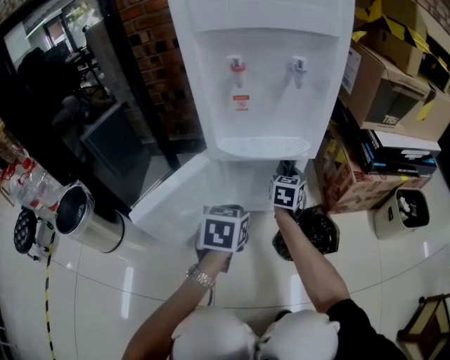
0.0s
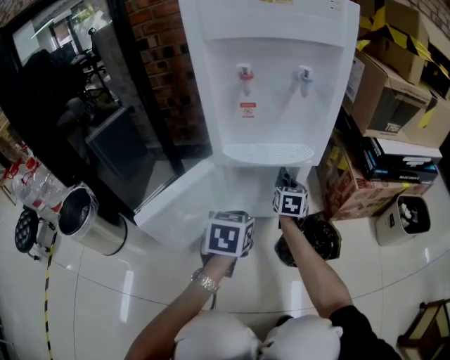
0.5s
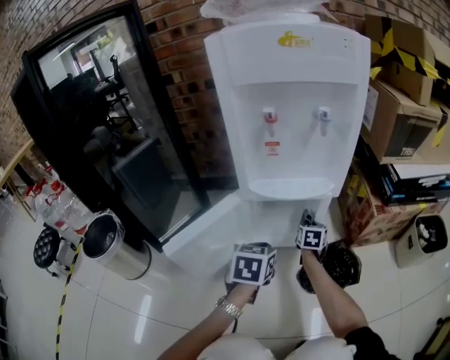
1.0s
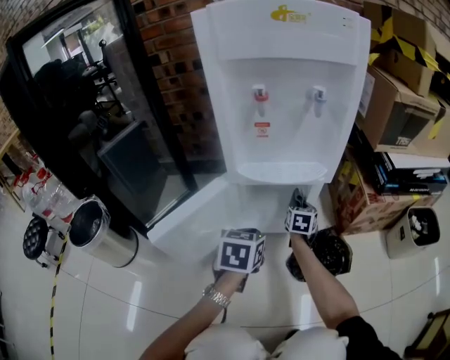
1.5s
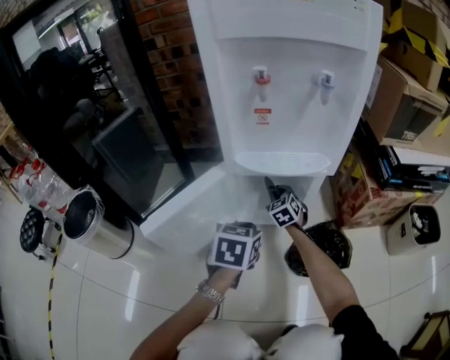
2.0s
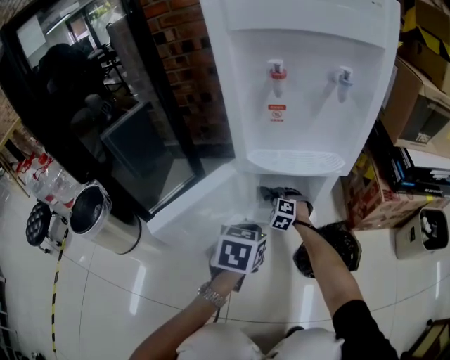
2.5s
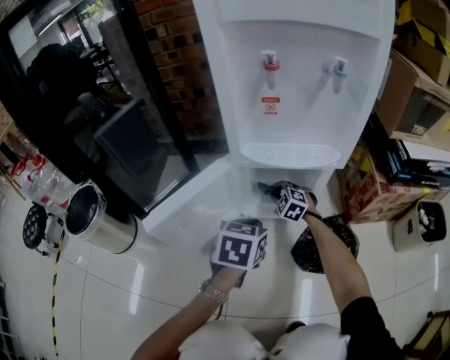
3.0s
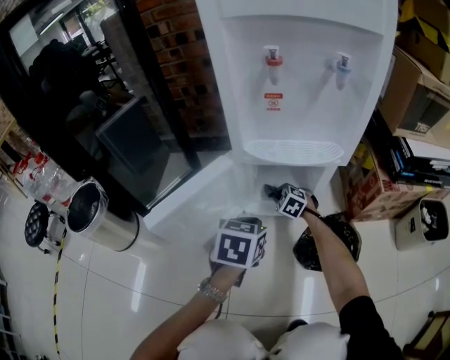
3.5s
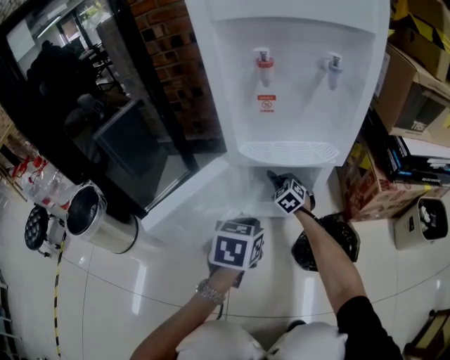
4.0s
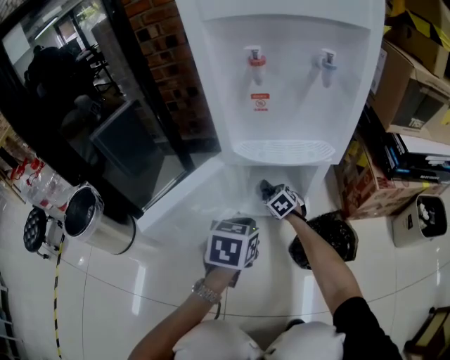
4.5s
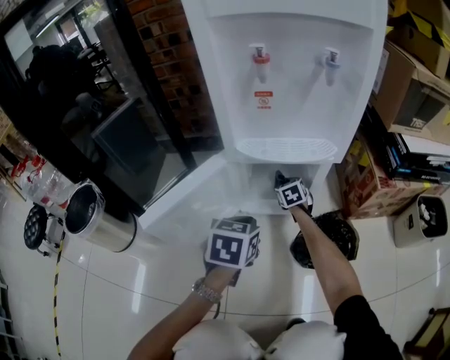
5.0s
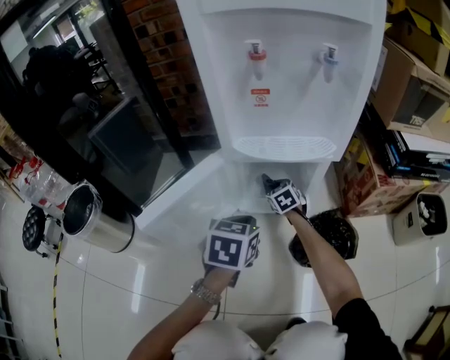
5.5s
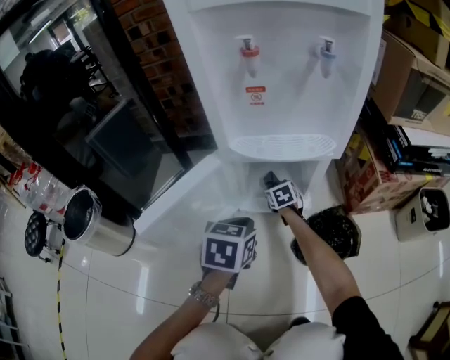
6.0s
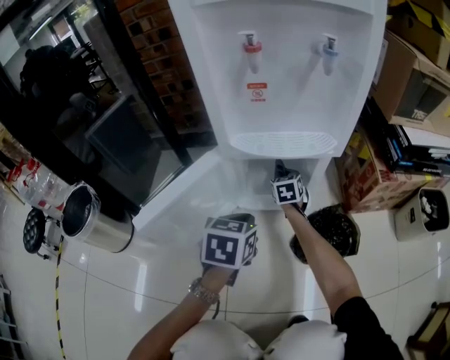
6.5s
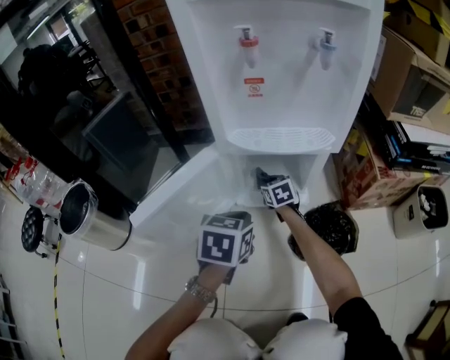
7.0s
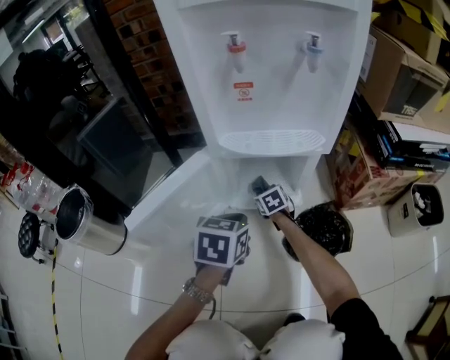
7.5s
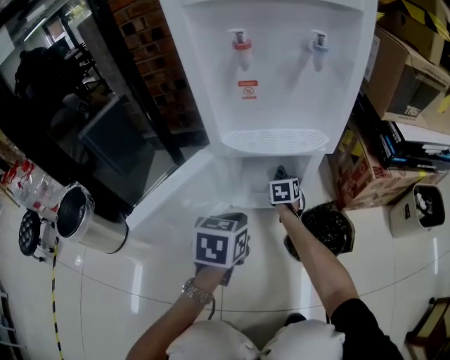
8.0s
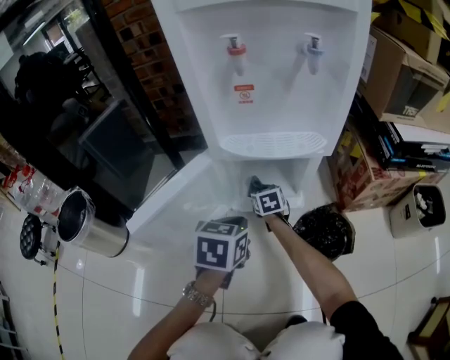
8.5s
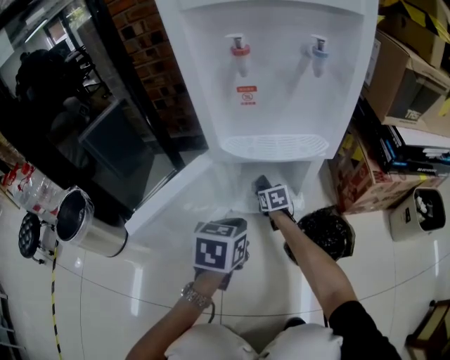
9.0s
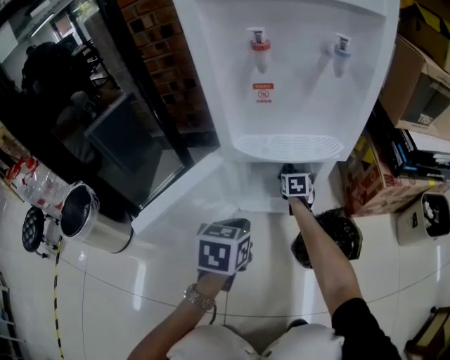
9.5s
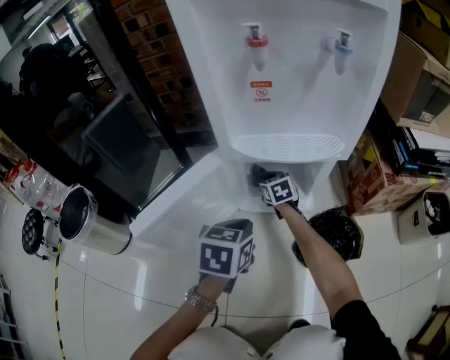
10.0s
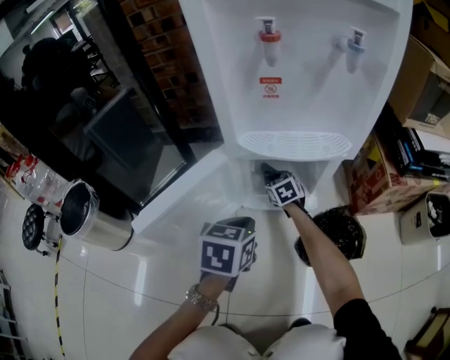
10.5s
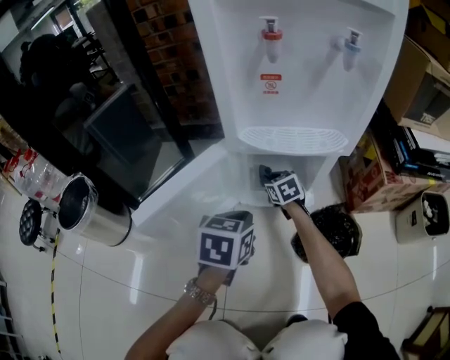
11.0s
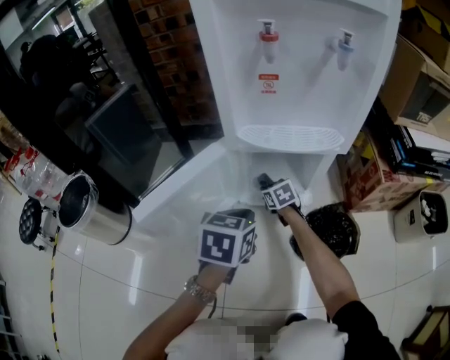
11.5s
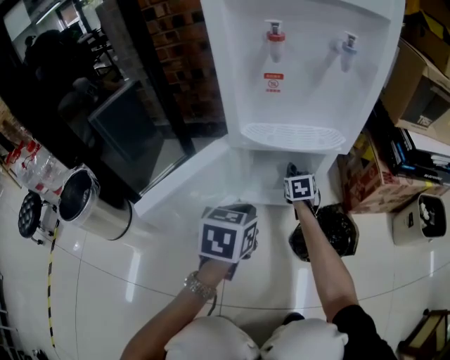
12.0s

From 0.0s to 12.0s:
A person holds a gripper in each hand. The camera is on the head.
From 0.0s to 2.0s: The right gripper travels downward and to the left by approximately 15 cm, and swivels roughly 40 degrees.
From 4.0s to 6.0s: The right gripper is displaced downward by about 5 cm, and changes its angle by some 30 degrees.
From 6.0s to 8.0s: The right gripper moves left and right over roughly 10 cm, changing direction 2 times, and swivels some 20 degrees.
From 8.0s to 10.0s: The right gripper goes left and right, some 10 cm each way, reversing 2 times, and rotates some 30 degrees.
From 10.0s to 12.0s: The right gripper moves to the right, some 10 cm.

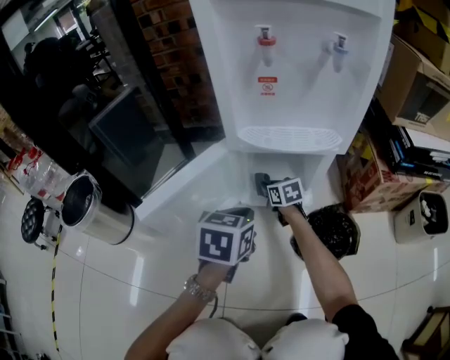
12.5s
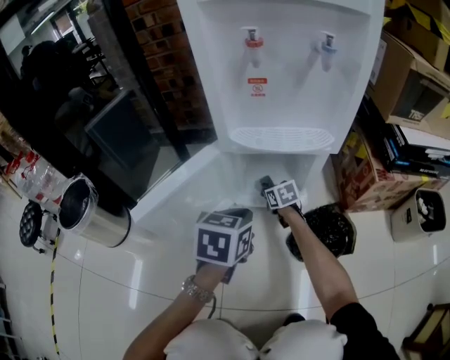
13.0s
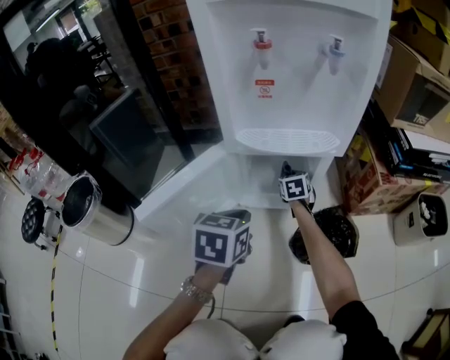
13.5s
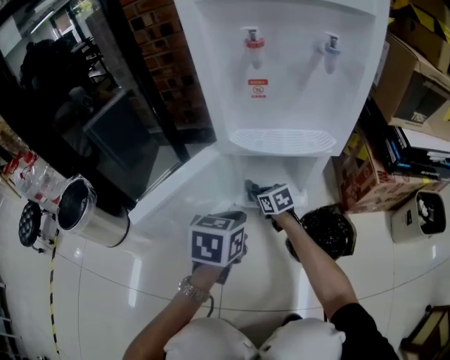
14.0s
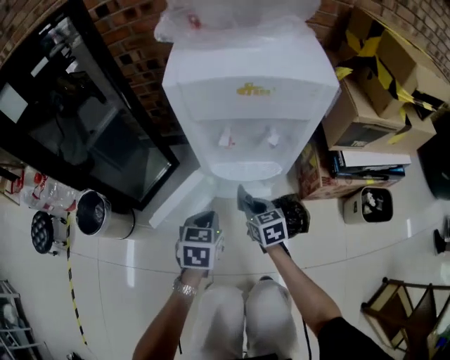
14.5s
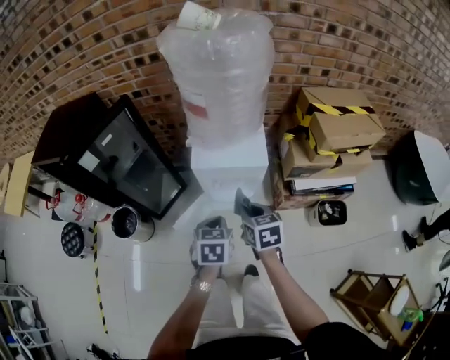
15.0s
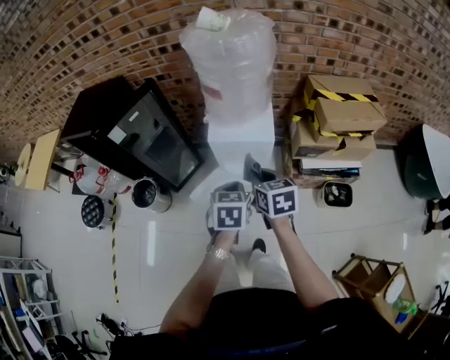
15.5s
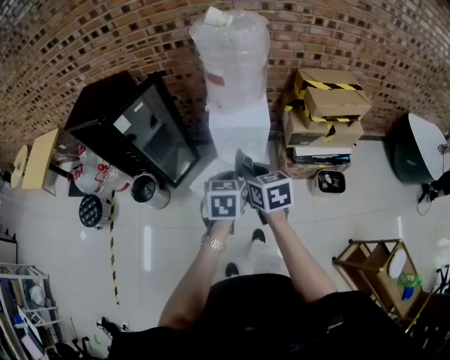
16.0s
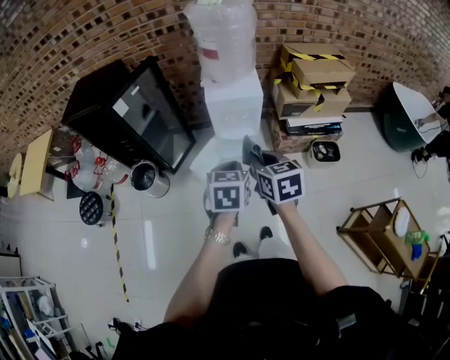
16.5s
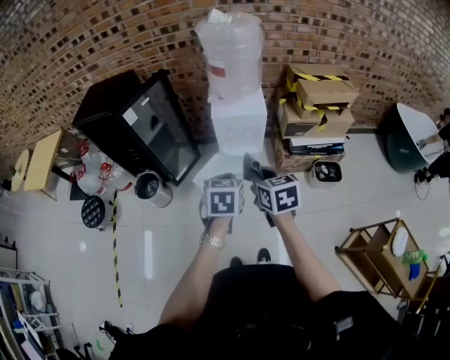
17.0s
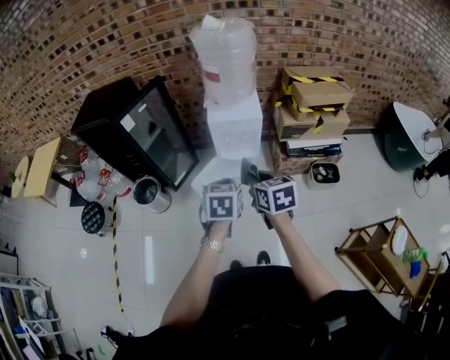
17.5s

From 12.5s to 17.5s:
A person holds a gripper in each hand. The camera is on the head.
From 12.5s to 15.0s: Both grippers travel together upward, roughly 70 cm.
From 15.0s to 17.5s: Both grippers move backward and upward, roughly 30 cm.

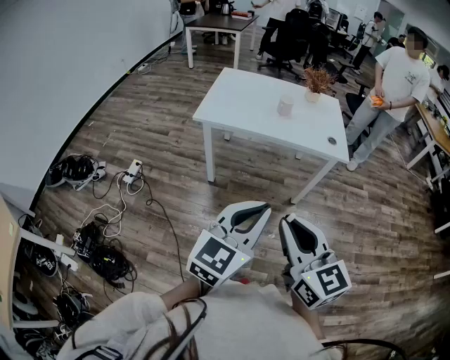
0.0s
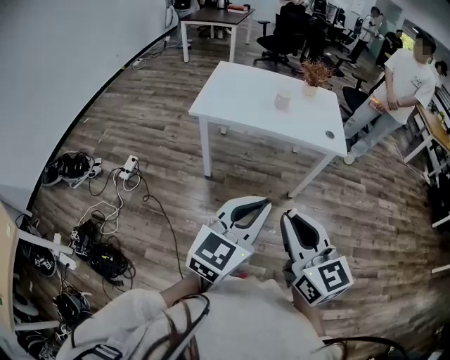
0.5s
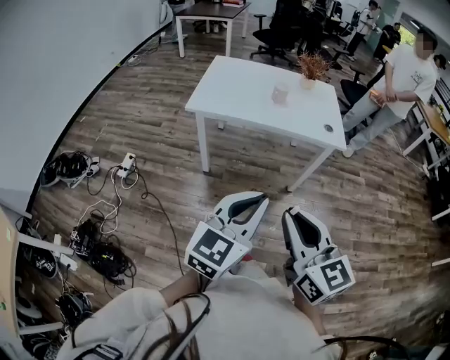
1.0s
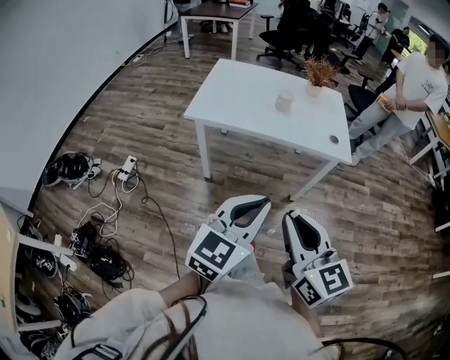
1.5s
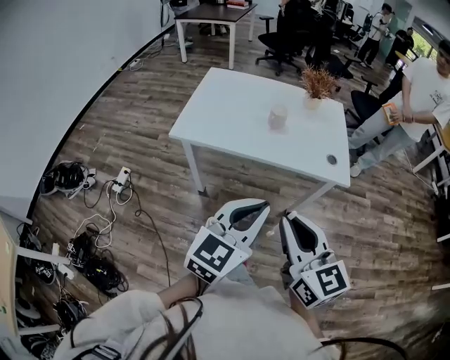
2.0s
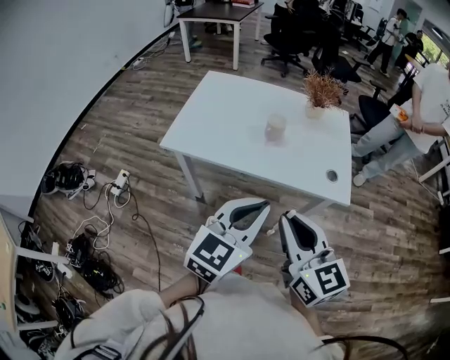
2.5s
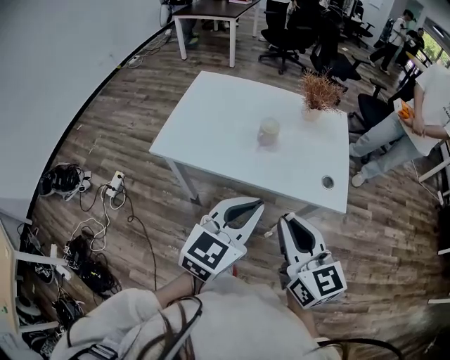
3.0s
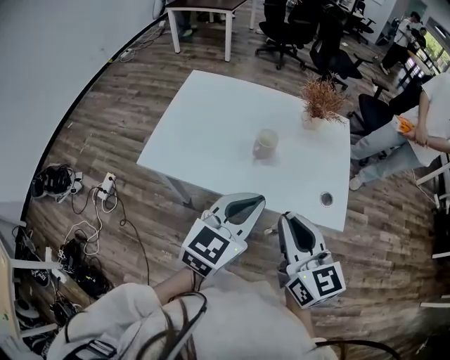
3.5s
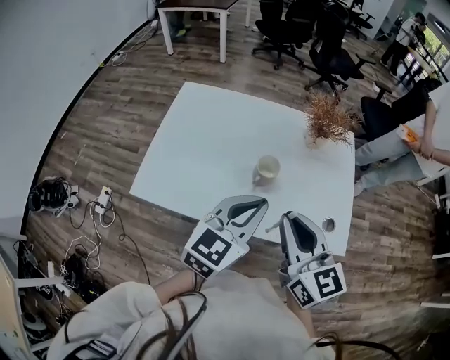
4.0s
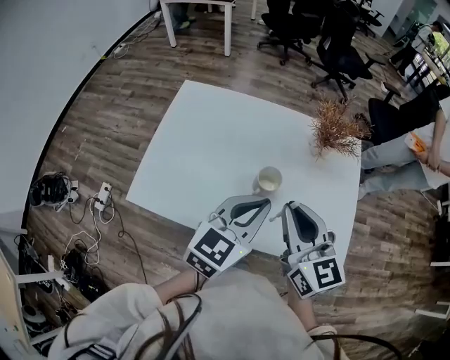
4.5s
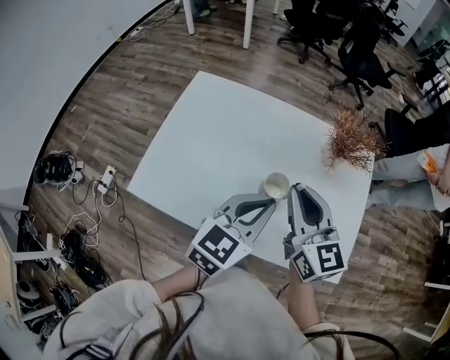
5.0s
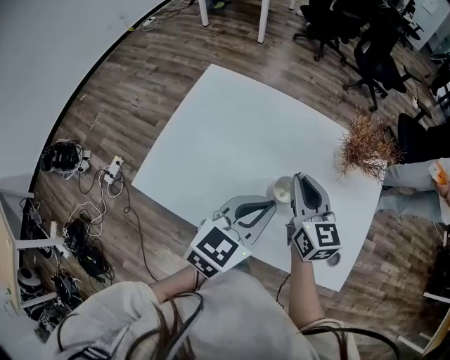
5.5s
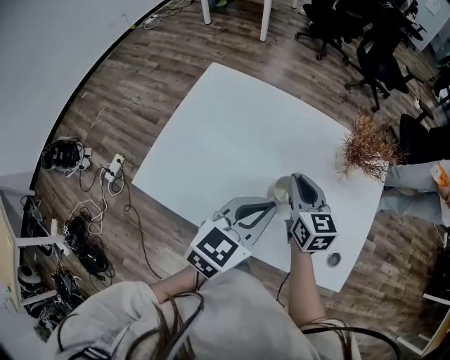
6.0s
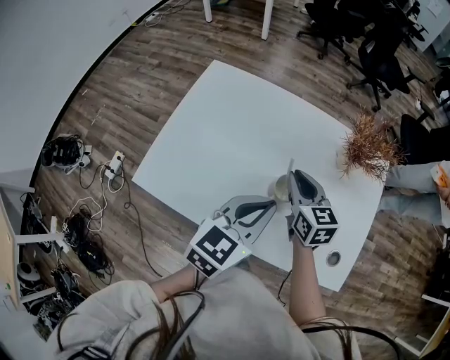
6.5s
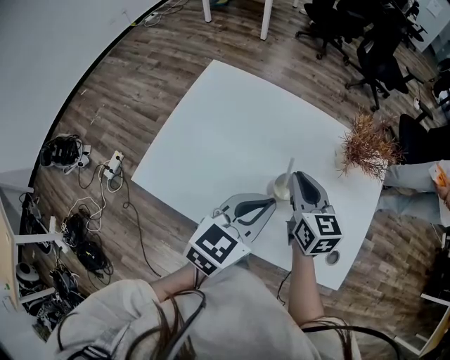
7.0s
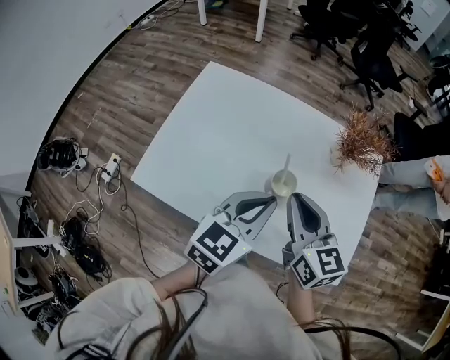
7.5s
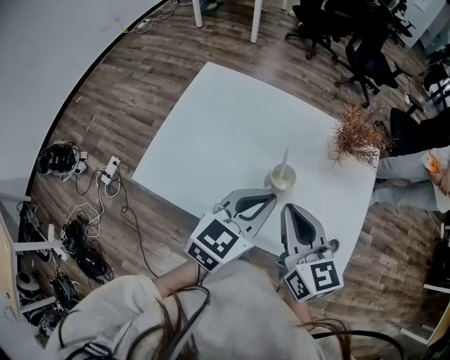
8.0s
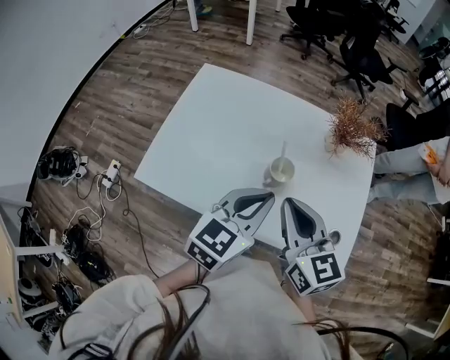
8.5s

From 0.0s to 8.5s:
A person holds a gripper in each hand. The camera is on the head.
From 0.0s to 2.0s: Both grippers travel together forward, about 20 cm.
From 2.0s to 4.0s: The grippers both shift forward by approximately 35 cm.
From 4.0s to 6.5s: The right gripper travels forward and downward by about 25 cm; the left gripper goes some 10 cm forward and downward.
From 6.5s to 8.5s: The right gripper is displaced backward and upward by about 20 cm. Meanwhile the left gripper ends up about 5 cm from where it was.

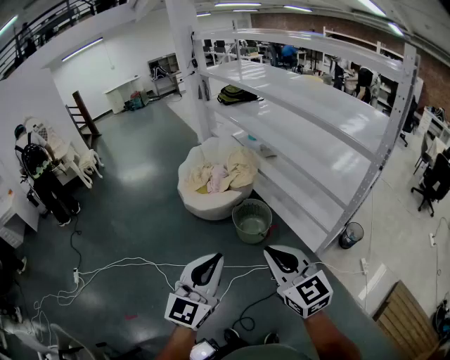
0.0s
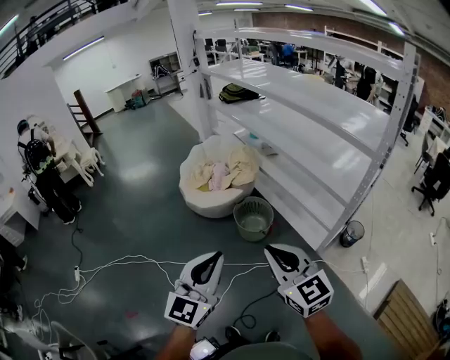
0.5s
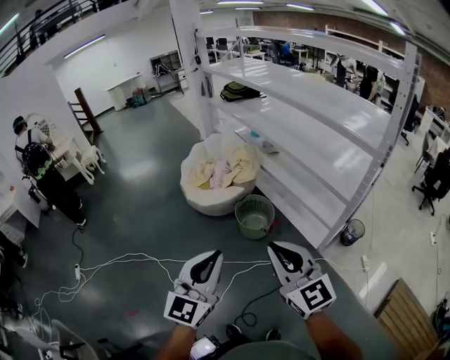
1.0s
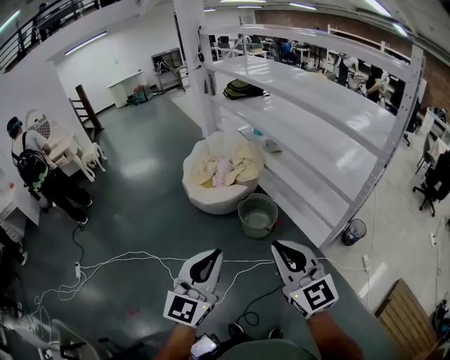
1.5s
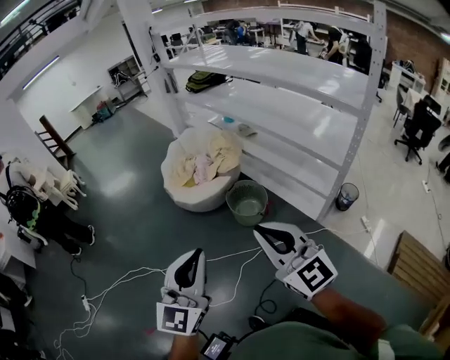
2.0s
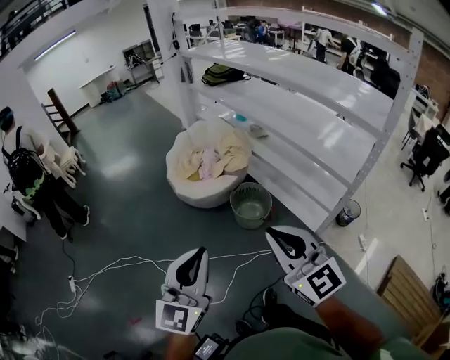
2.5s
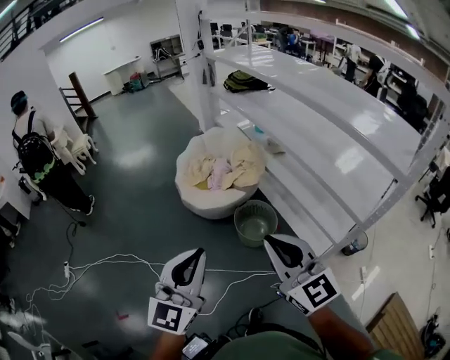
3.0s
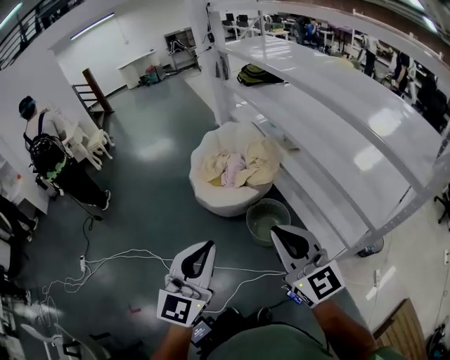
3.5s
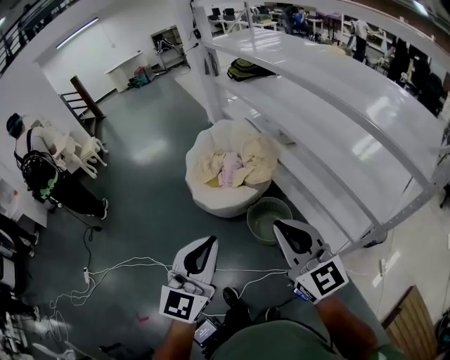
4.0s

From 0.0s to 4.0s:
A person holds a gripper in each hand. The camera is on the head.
From 0.0s to 2.0s: The two grippers go some 10 cm to the left.
From 2.0s to 4.0s: The grippers both shift forward by approximately 25 cm.
